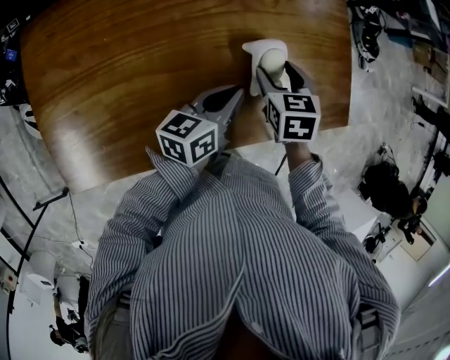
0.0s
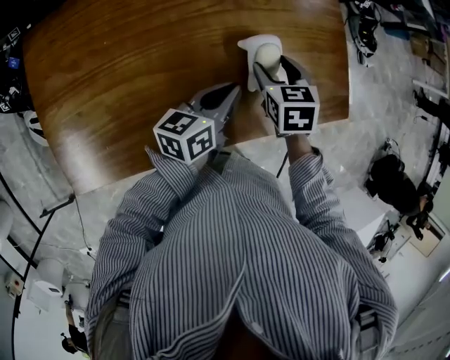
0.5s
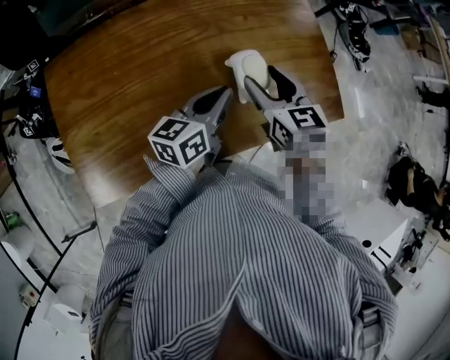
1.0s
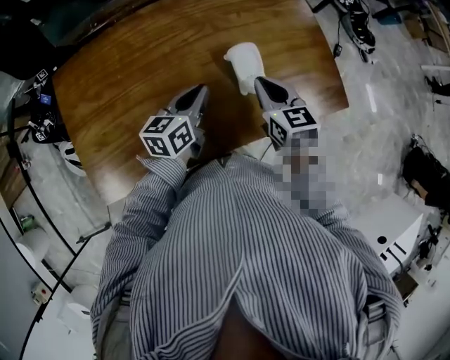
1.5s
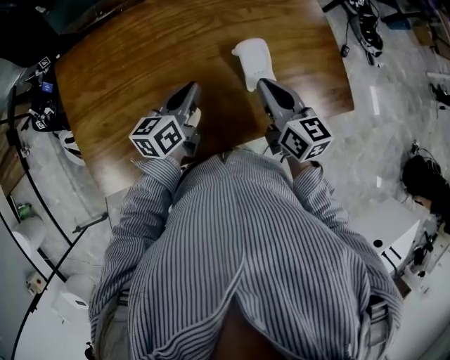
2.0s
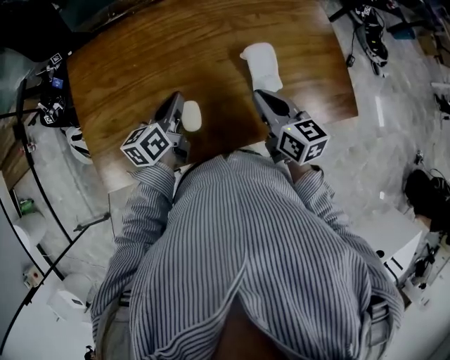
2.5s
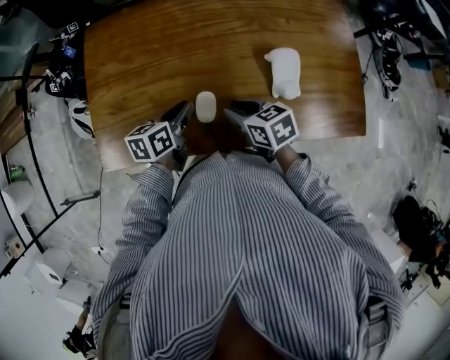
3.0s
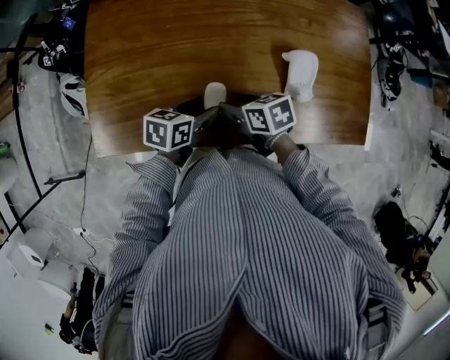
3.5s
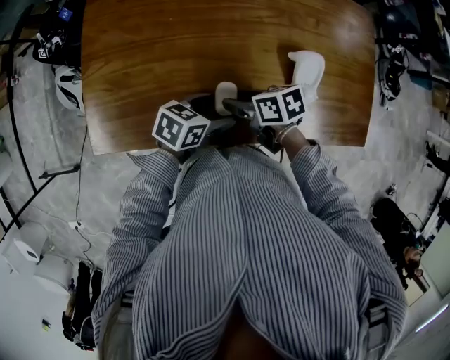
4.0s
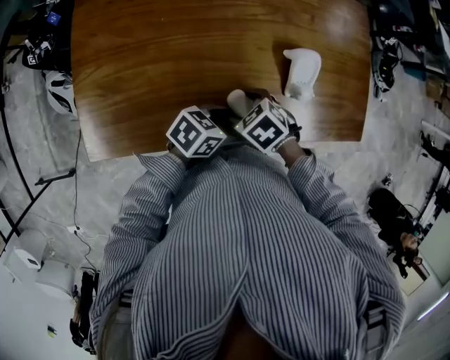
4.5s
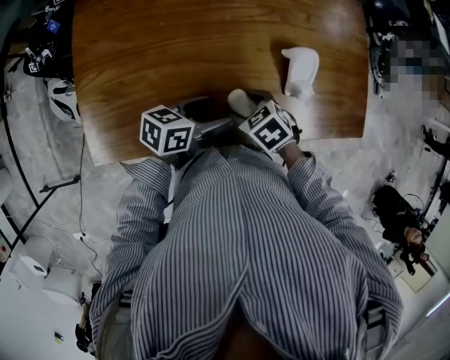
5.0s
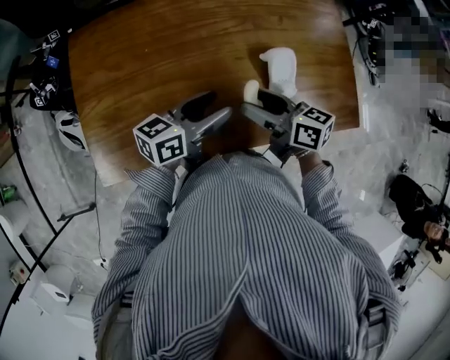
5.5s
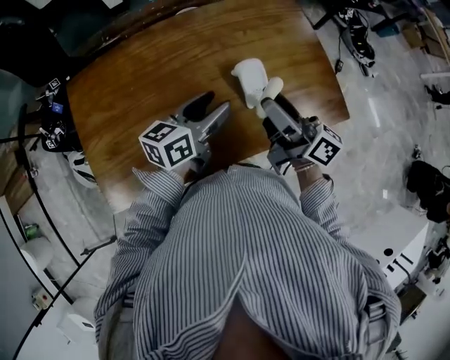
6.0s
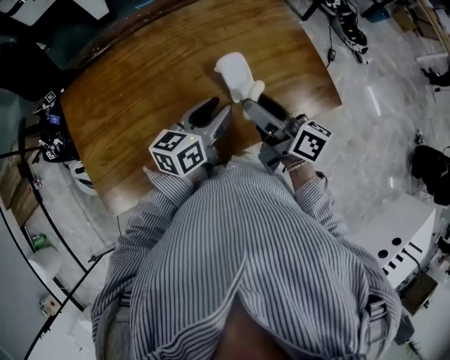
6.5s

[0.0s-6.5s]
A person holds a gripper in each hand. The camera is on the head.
0.0s to 2.0s: The left gripper travels to the left by about 10 cm. The right gripper shifts roughly 10 cm upward and backward, points its fingers roughly 40 degrees further upward, and closes up.
2.0s to 4.5s: The right gripper ends up roughly 20 cm from where it was, tips its fingers downward by some 50 degrees, and opens. The left gripper ends up some 15 cm from where it was, swivels approximately 40 degrees, and opens its fingers.
4.5s to 6.5s: The right gripper shifts about 20 cm upward, and angles its fingers upward, by some 70 degrees. The left gripper travels upward by some 15 cm, swivels about 30 degrees, and closes its fingers.

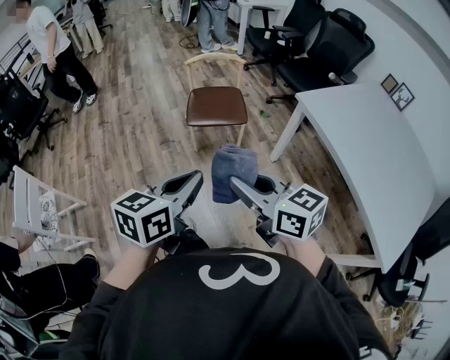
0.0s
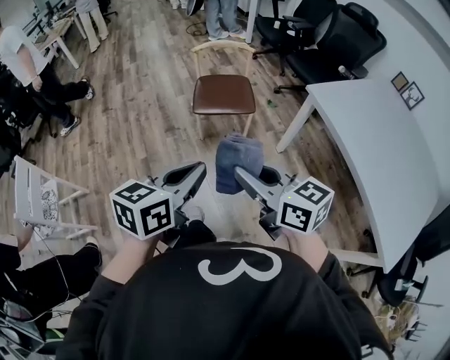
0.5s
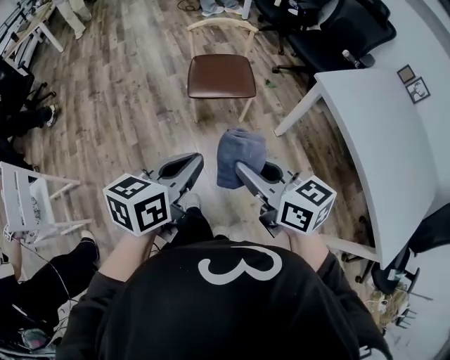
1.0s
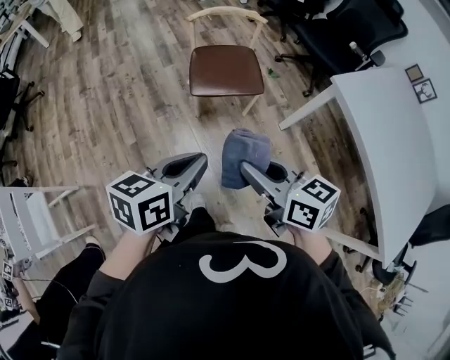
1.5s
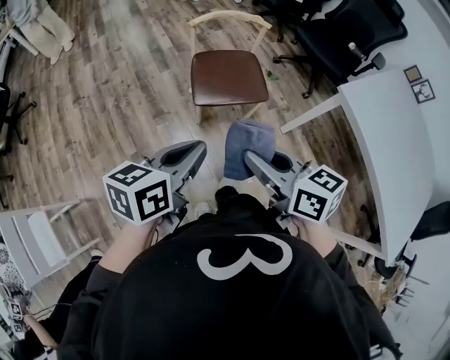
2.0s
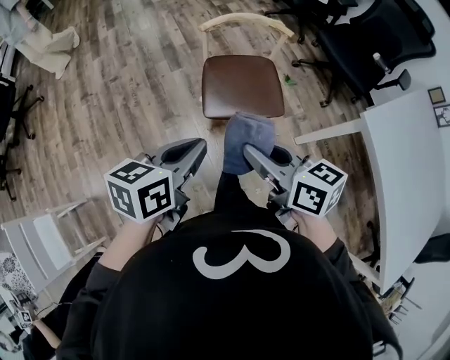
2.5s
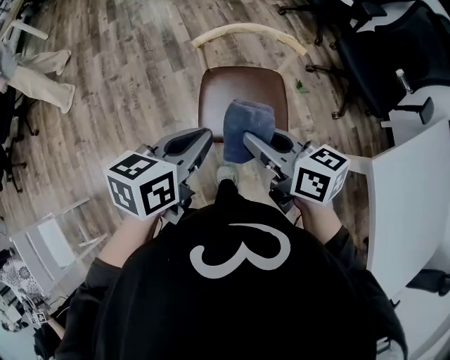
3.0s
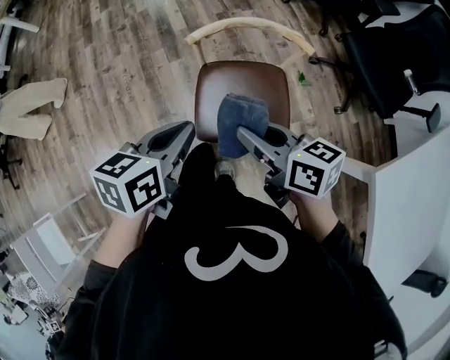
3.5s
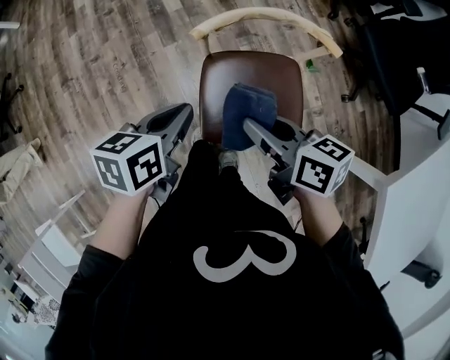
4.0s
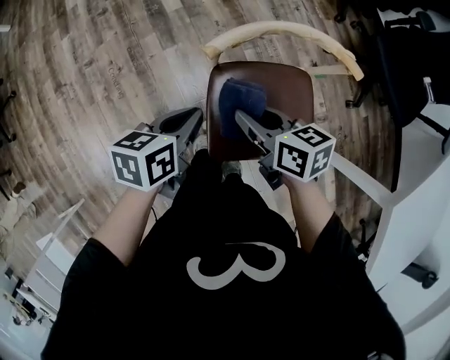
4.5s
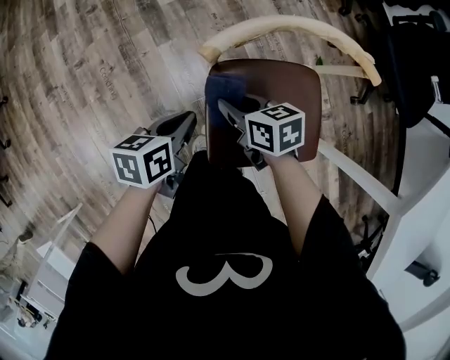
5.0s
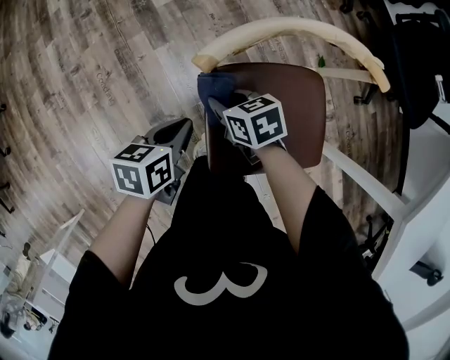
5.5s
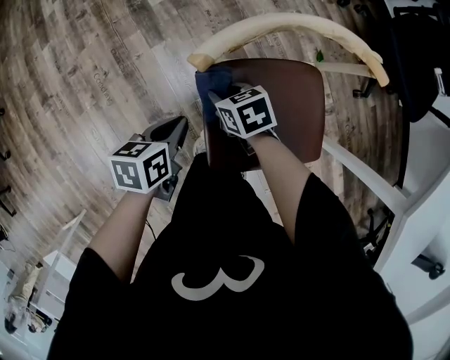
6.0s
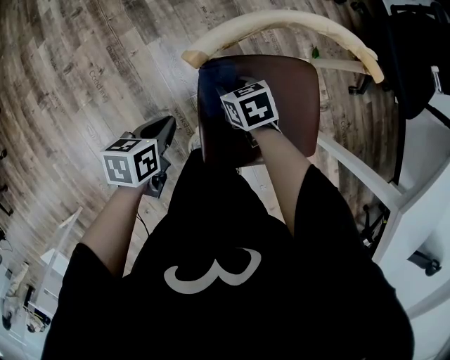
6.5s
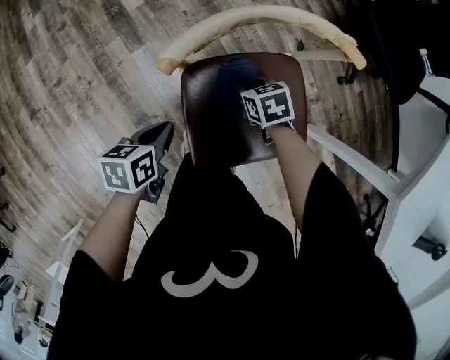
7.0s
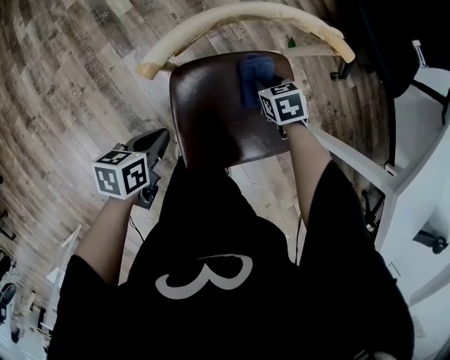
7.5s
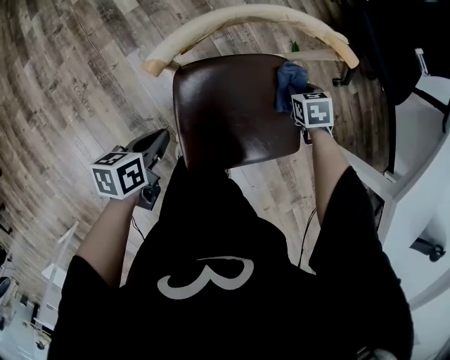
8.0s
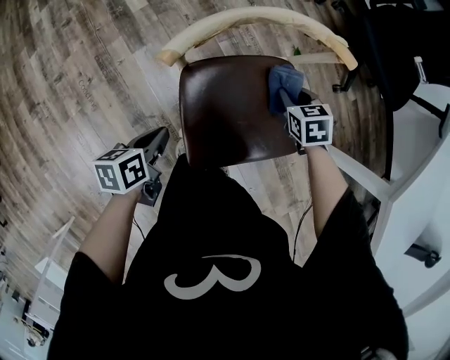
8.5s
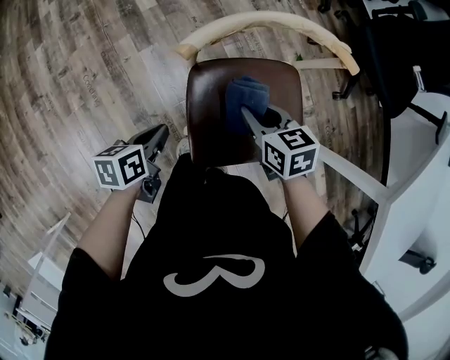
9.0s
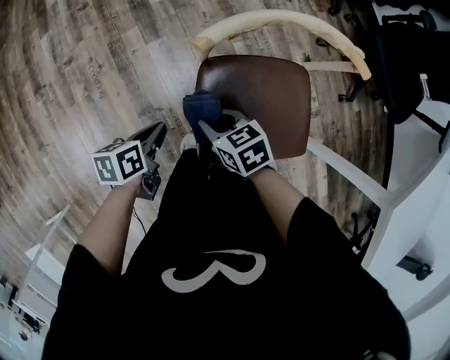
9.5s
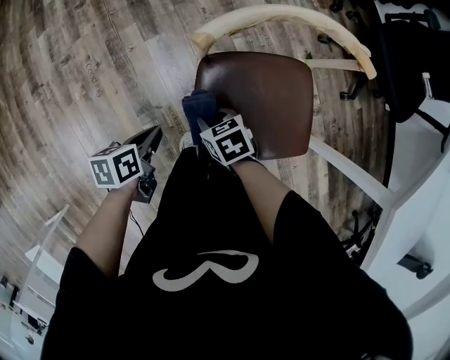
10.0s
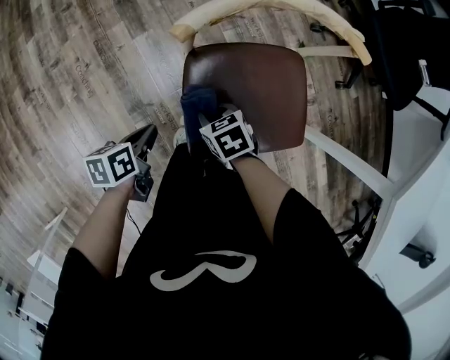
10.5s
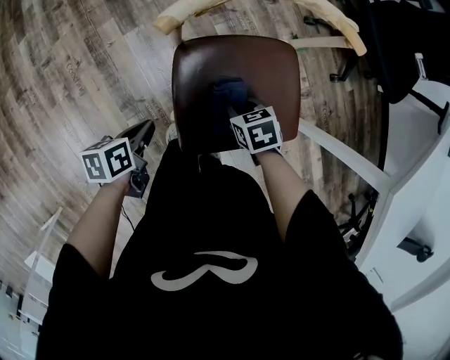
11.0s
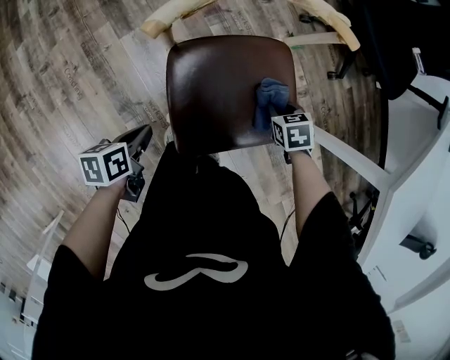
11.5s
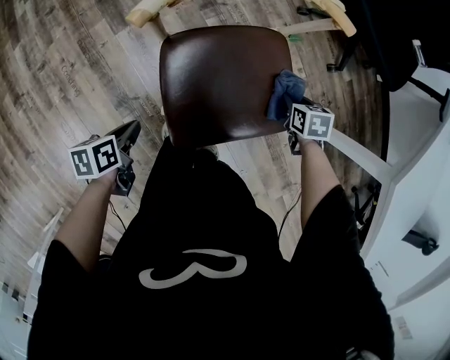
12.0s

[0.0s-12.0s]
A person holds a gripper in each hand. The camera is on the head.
0.0s to 2.0s: The grippers both shift forward and to the left by roughly 30 cm.
2.0s to 4.0s: The two grippers travel together, forward, some 40 cm. The left gripper goes some 20 cm downward, and swivels approximately 20 degrees, while the right gripper changes its angle by approximately 20 degrees.
4.0s to 6.0s: The right gripper goes about 30 cm downward and forward, and changes its angle by about 30 degrees. Meanwhile the left gripper shifts about 20 cm downward.
6.0s to 8.0s: The right gripper moves about 30 cm, and changes its angle by some 30 degrees.
8.0s to 10.0s: The right gripper reaches approximately 10 cm upward, then returns, and changes its angle by about 30 degrees; the left gripper moves approximately 10 cm.
10.0s to 12.0s: The right gripper shifts by about 35 cm, and rotates roughly 30 degrees.

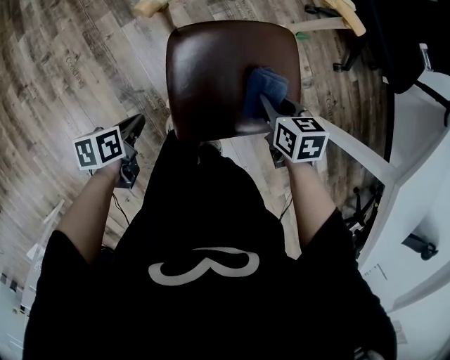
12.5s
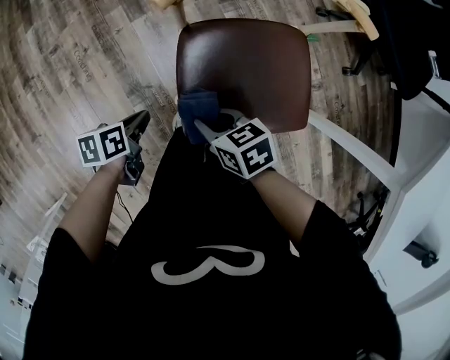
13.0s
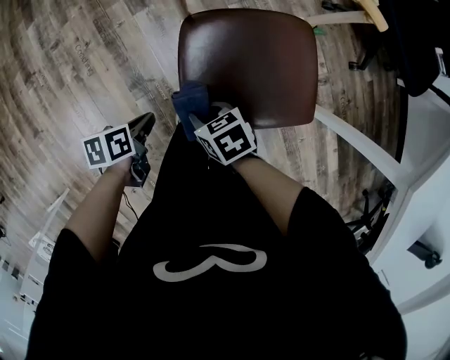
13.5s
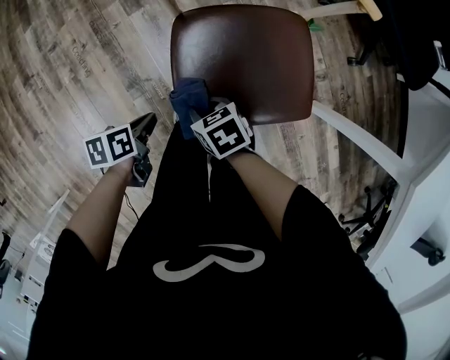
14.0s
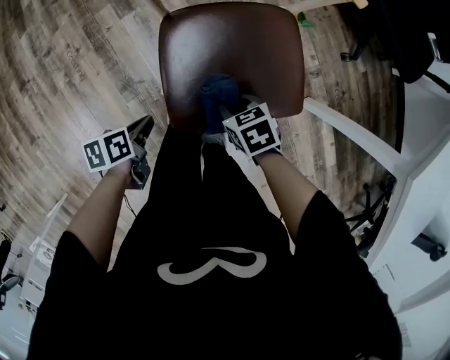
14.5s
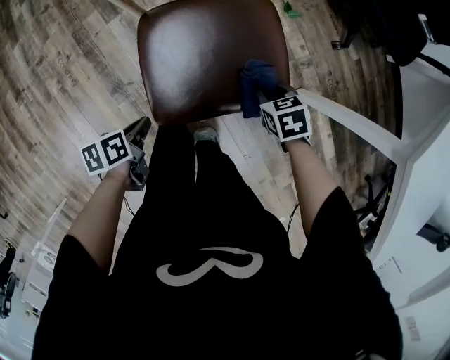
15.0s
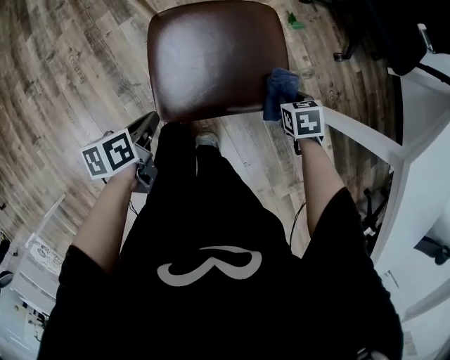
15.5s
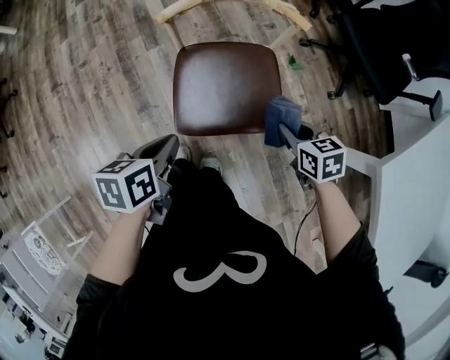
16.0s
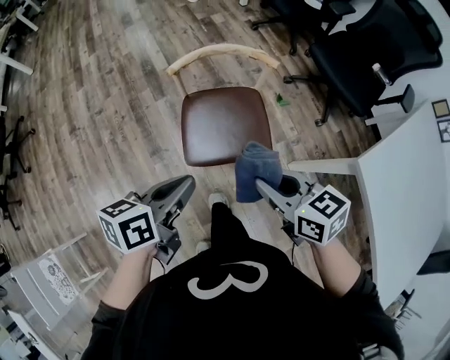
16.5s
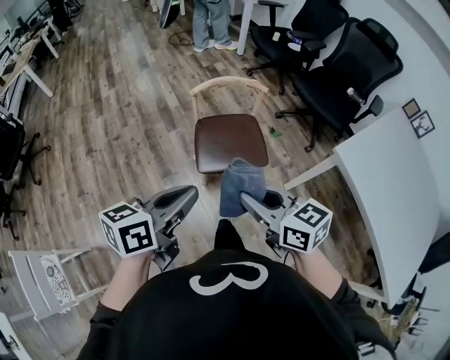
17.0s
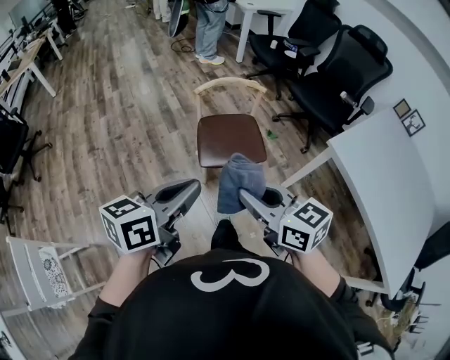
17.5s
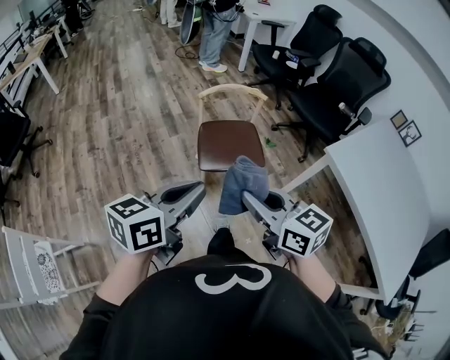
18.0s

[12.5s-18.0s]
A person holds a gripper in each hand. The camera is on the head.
12.5s to 14.5s: The right gripper rotates some 20 degrees. The left gripper ends up approximately 5 cm from where it was.
14.5s to 16.0s: The two grippers go approximately 25 cm upward and to the right. The left gripper swivels about 20 degrees.
16.0s to 18.0s: The left gripper heads upward and backward, covering about 40 cm, and tips its fingers upward by about 30 degrees. Meanwhile the right gripper heads upward, backward and to the left, covering some 50 cm, and points its fingers about 40 degrees further upward.

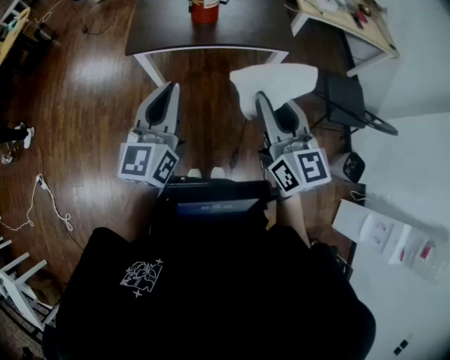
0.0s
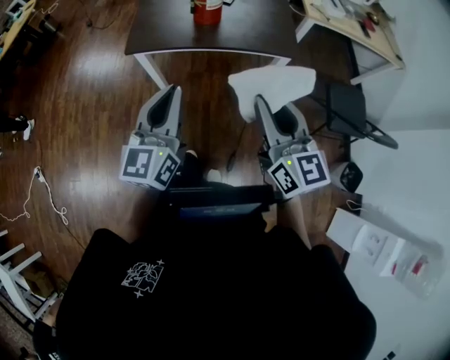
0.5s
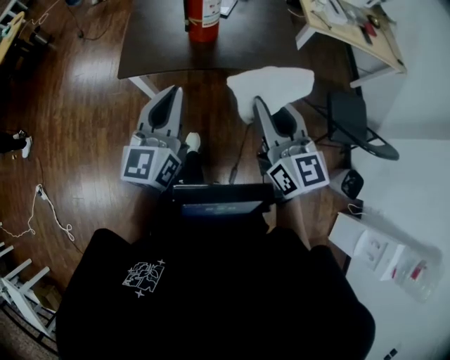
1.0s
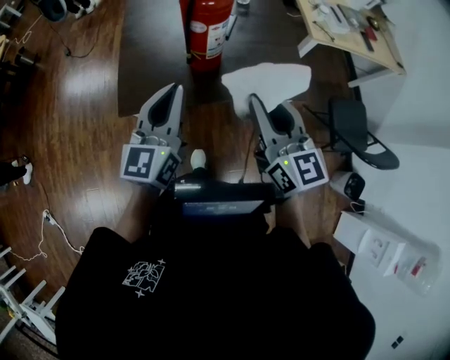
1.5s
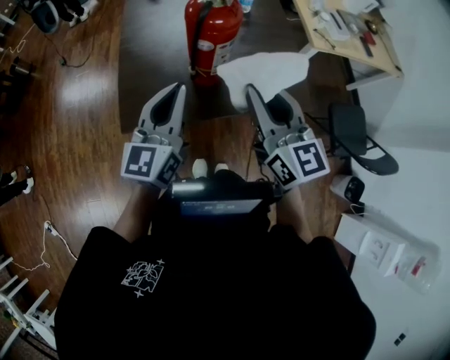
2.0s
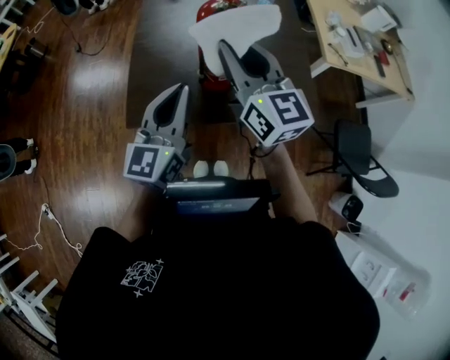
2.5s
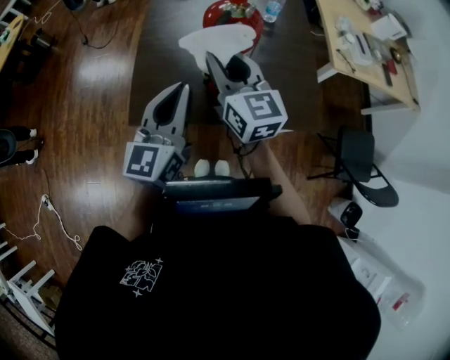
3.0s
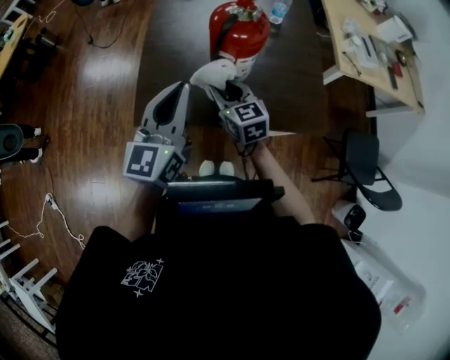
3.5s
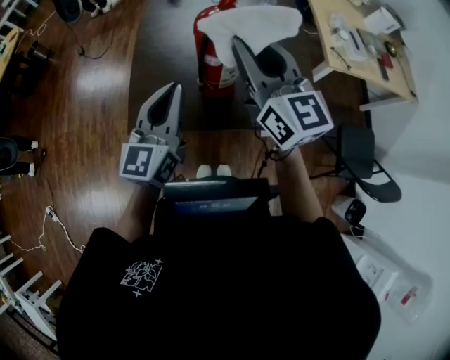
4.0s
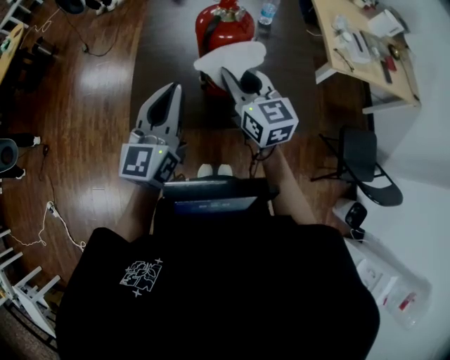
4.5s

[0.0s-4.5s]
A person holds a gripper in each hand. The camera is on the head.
0.0s to 2.0s: Both grippers travel together forward, roughly 40 cm.
2.0s to 4.5s: The right gripper goes up and down, about 25 cm each way, reversing 2 times.
